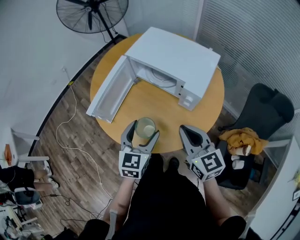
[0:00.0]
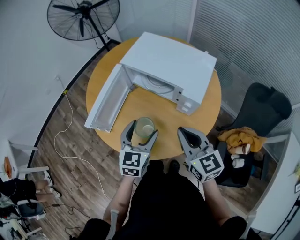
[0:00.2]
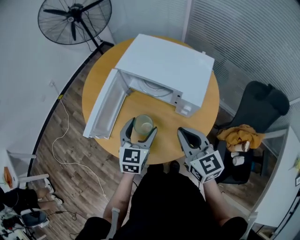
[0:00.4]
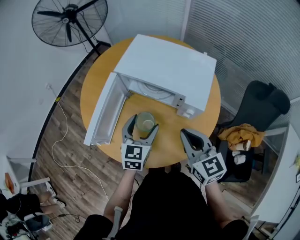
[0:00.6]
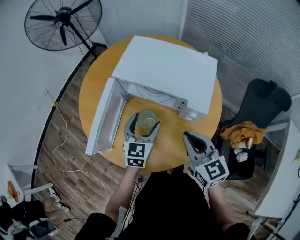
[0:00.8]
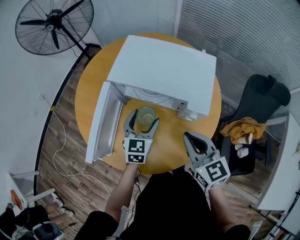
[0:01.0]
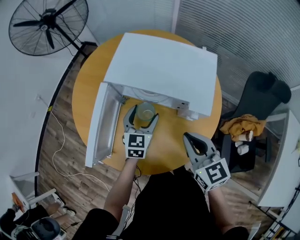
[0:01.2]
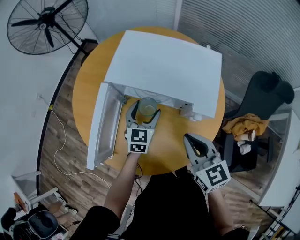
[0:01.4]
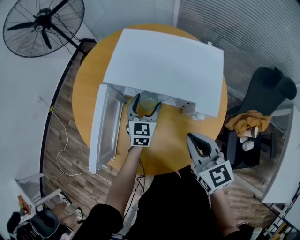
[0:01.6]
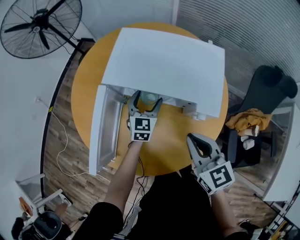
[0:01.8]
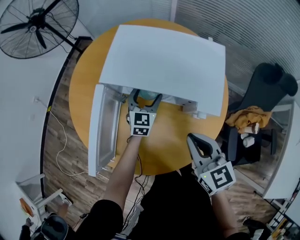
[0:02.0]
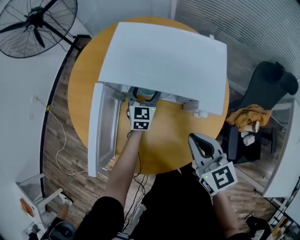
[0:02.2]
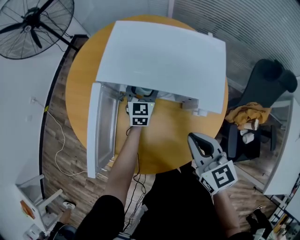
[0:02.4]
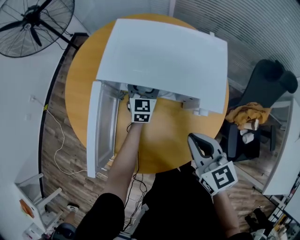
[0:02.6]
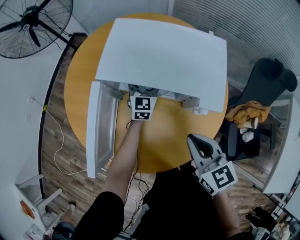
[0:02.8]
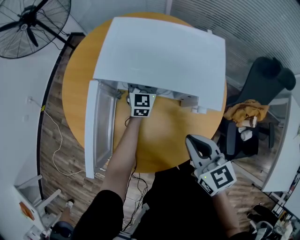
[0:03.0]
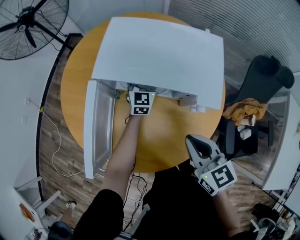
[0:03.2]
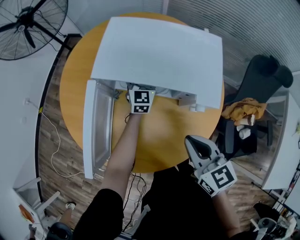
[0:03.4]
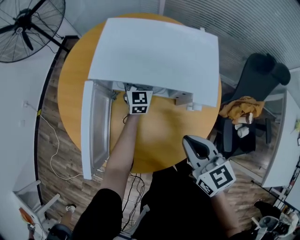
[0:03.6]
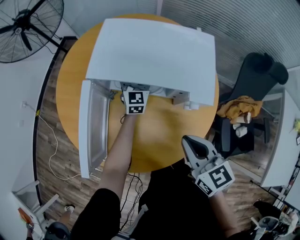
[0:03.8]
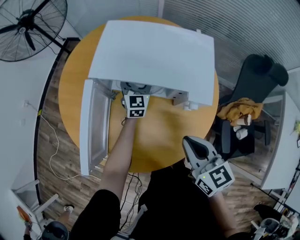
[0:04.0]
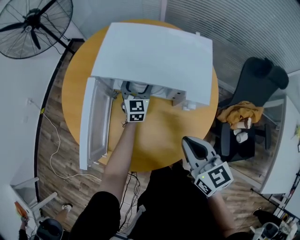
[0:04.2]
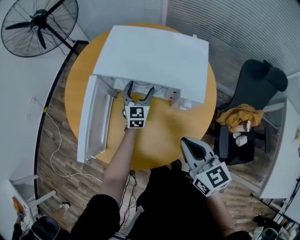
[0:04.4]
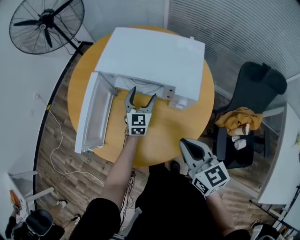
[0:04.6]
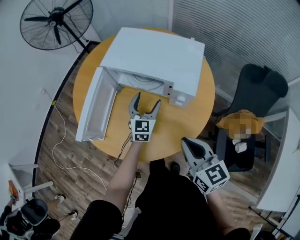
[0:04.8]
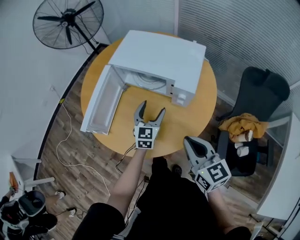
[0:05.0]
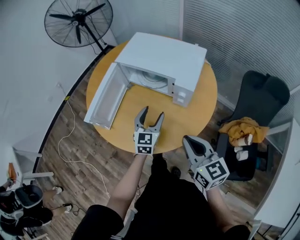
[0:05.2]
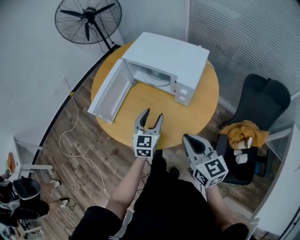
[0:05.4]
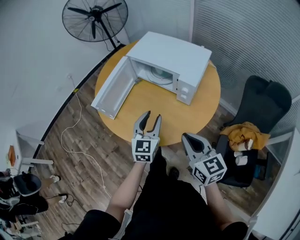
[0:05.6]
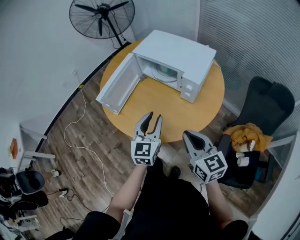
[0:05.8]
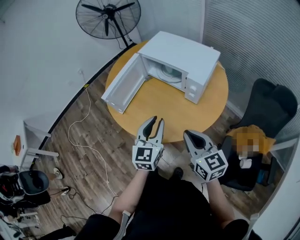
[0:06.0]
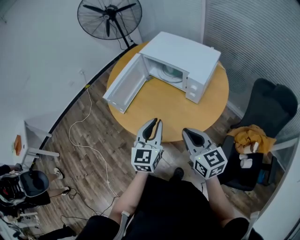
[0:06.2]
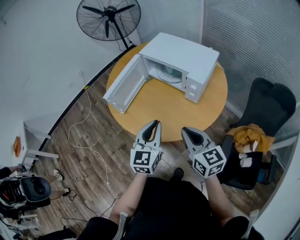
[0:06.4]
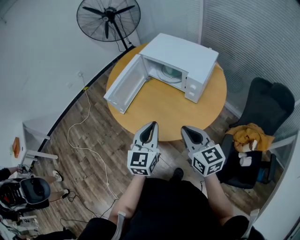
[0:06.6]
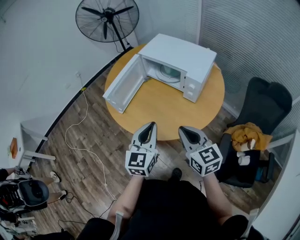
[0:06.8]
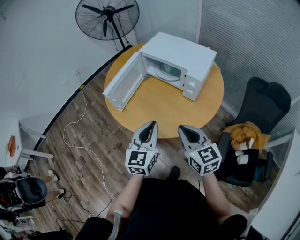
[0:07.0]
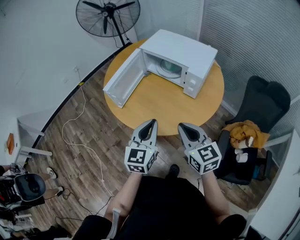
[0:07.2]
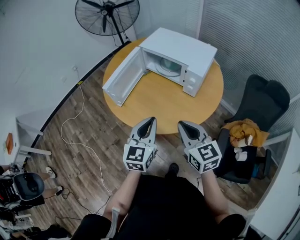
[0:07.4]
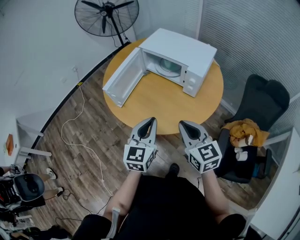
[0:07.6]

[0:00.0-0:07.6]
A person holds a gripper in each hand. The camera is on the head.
0:00.0 to 0:01.6: The right gripper moves forward, about 10 cm. Meanwhile the left gripper shifts some 30 cm forward and downward.
0:01.6 to 0:03.0: The left gripper is displaced forward by approximately 10 cm.
0:03.0 to 0:04.6: The left gripper travels backward by some 10 cm. The right gripper goes some 10 cm backward.
0:04.6 to 0:06.0: The right gripper goes about 15 cm backward; the left gripper goes approximately 35 cm backward and upward, and closes up.
0:06.0 to 0:07.6: The left gripper is displaced backward by some 5 cm.

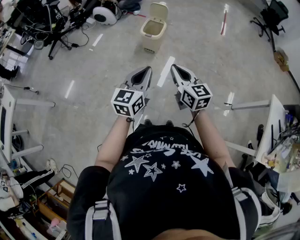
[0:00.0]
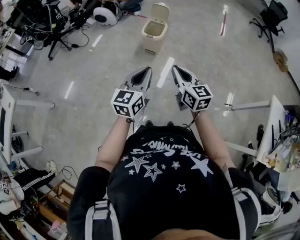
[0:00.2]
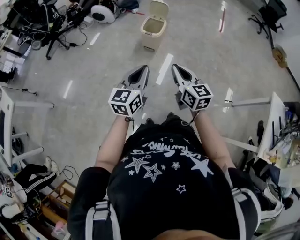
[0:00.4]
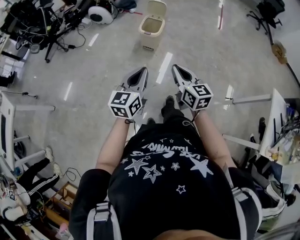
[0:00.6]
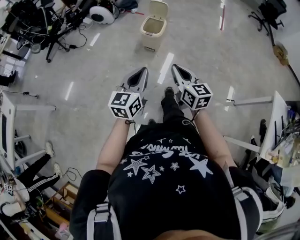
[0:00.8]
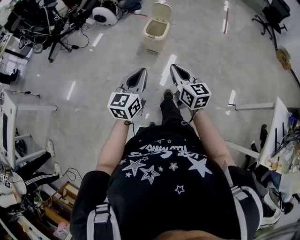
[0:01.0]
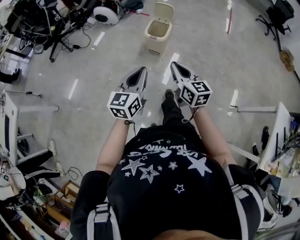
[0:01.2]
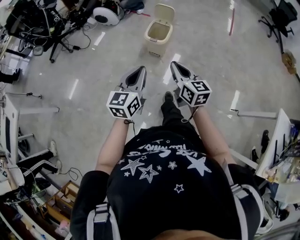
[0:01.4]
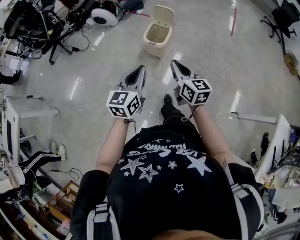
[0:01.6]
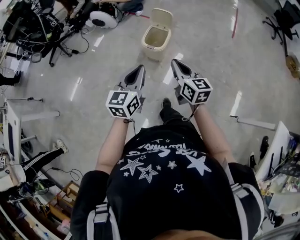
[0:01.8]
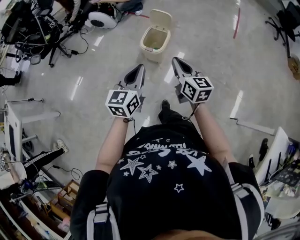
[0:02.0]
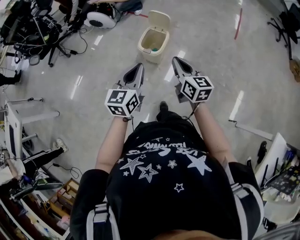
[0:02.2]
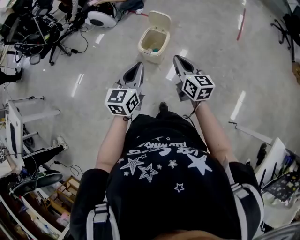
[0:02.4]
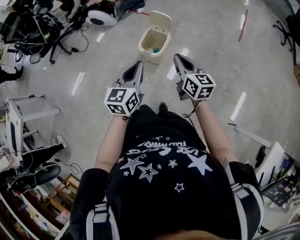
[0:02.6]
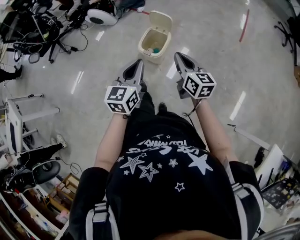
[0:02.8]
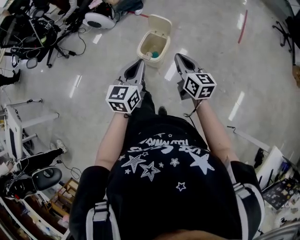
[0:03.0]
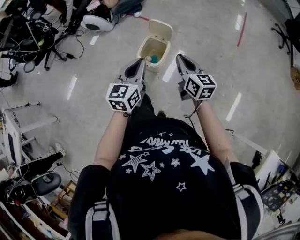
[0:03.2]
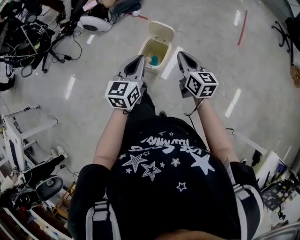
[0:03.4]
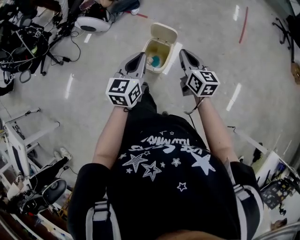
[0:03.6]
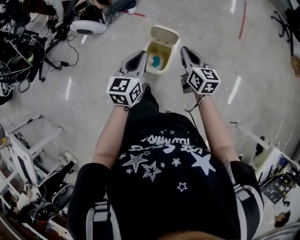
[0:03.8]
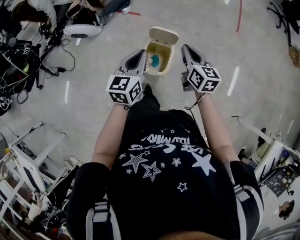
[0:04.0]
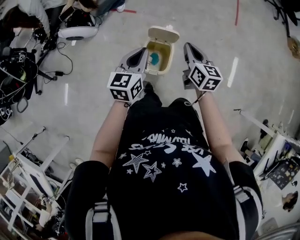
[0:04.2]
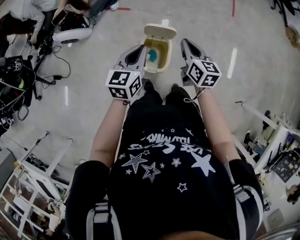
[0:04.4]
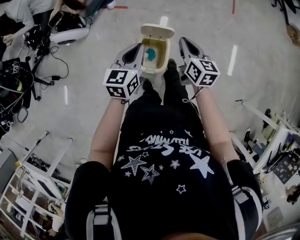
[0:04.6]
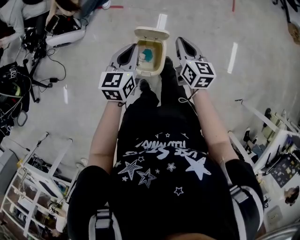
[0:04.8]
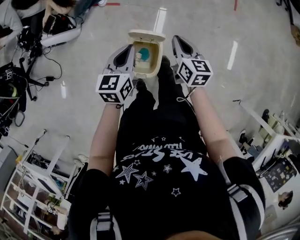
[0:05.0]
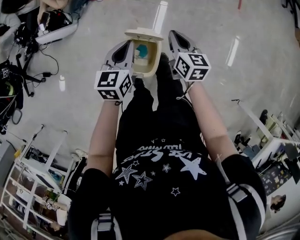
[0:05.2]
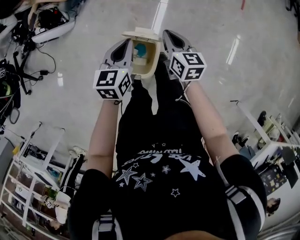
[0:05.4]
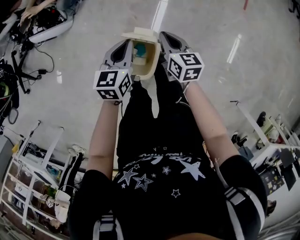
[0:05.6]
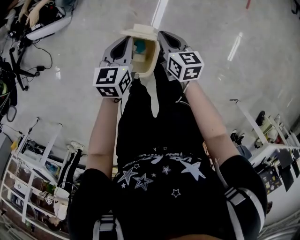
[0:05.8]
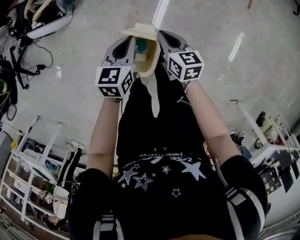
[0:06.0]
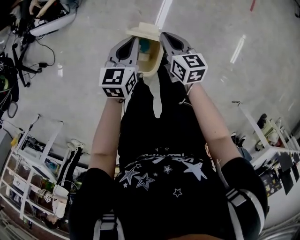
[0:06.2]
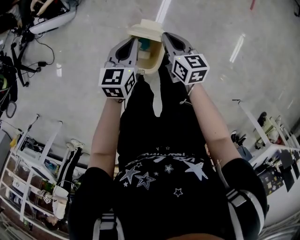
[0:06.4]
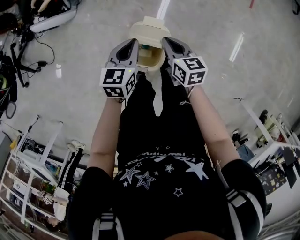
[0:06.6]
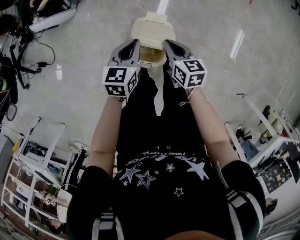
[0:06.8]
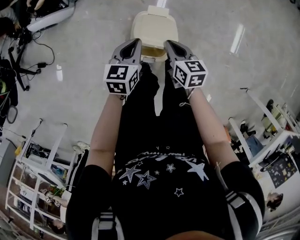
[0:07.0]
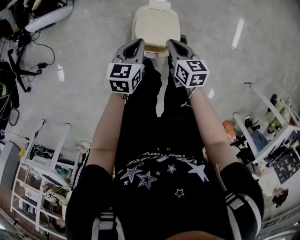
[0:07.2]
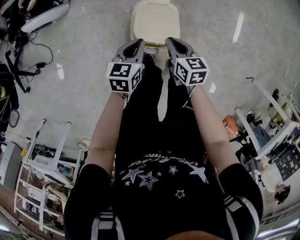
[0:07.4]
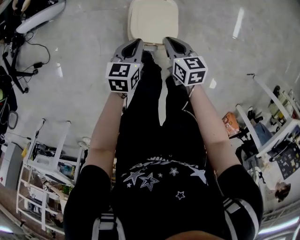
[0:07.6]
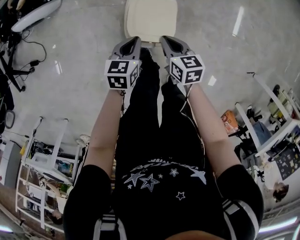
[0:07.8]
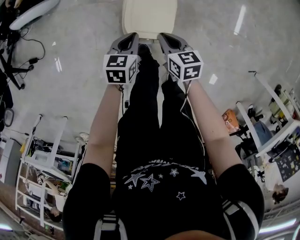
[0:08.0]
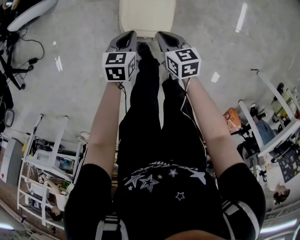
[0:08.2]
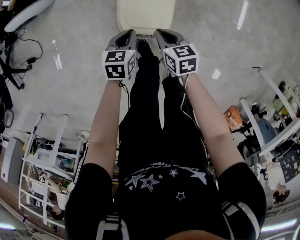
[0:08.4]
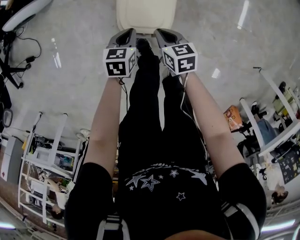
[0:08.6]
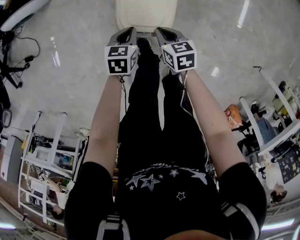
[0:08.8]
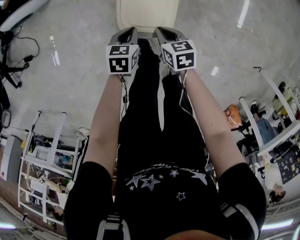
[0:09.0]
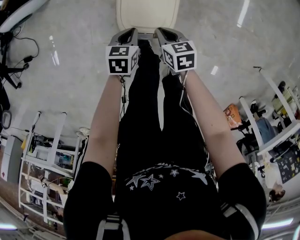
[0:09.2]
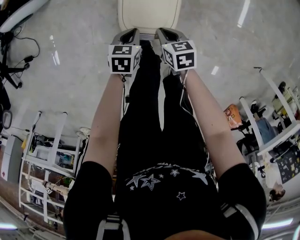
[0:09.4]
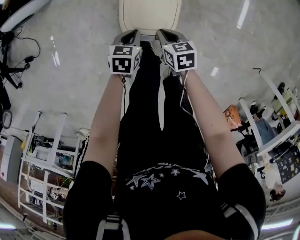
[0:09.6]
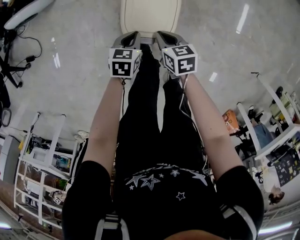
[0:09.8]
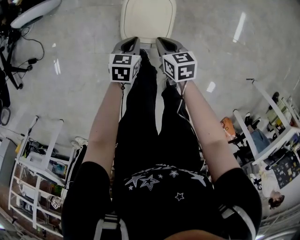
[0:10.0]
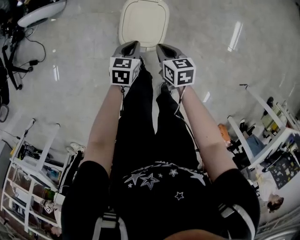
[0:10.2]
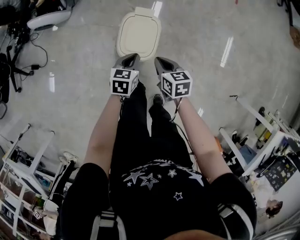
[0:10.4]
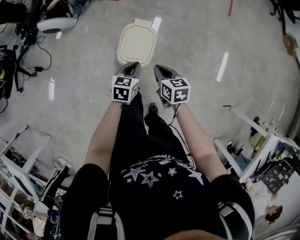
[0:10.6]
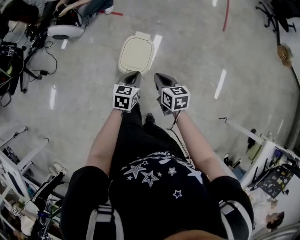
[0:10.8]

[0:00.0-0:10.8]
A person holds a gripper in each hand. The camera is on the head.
0:00.0 to 0:01.6: The grippers both shift forward by roughly 20 cm.
0:01.6 to 0:03.0: The two grippers go roughly 25 cm forward and to the right.
0:03.0 to 0:04.6: The grippers both shift forward by some 30 cm. The left gripper turns by about 20 degrees. The right gripper swivels about 30 degrees.
0:04.6 to 0:06.2: The left gripper is displaced downward, forward and to the right by about 15 cm. The right gripper is displaced downward and forward by about 15 cm.
0:06.2 to 0:07.8: The grippers both shift backward and downward by about 20 cm.
0:07.8 to 0:09.2: The two grippers go approximately 10 cm downward.
0:09.2 to 0:10.8: Both grippers move upward, about 30 cm. The left gripper turns by roughly 20 degrees.

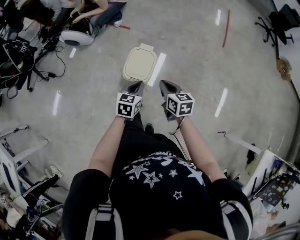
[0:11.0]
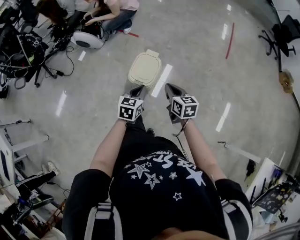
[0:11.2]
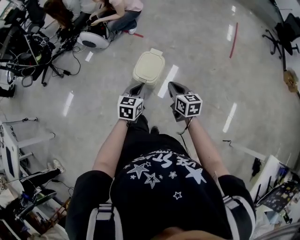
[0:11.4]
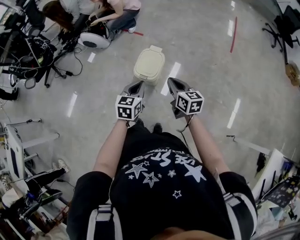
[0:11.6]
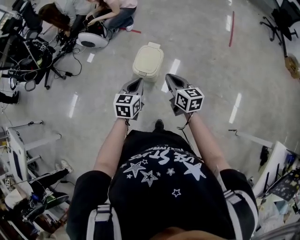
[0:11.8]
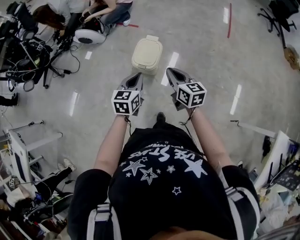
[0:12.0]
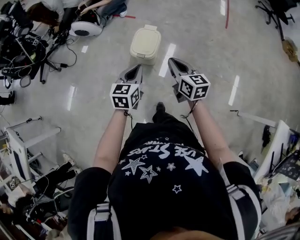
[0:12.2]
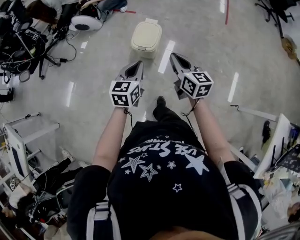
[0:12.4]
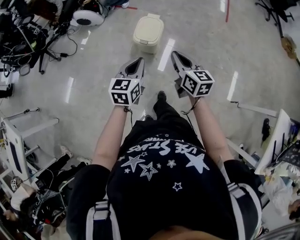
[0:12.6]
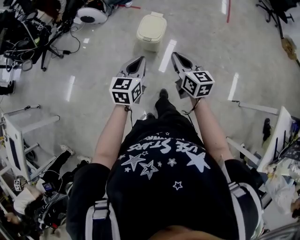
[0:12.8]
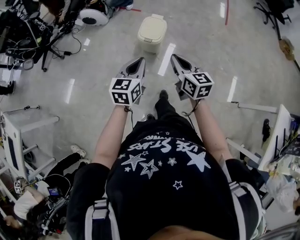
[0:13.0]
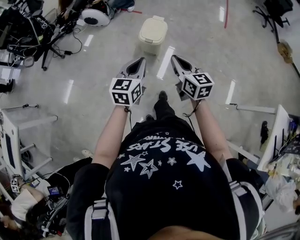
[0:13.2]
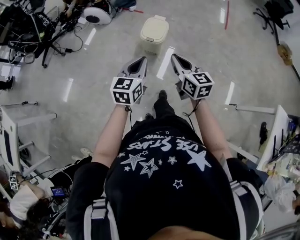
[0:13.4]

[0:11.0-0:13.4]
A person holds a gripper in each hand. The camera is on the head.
0:11.0 to 0:12.2: The grippers both shift backward and upward by approximately 15 cm.
0:12.2 to 0:13.4: The two grippers go some 20 cm backward and to the left.

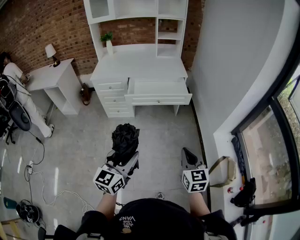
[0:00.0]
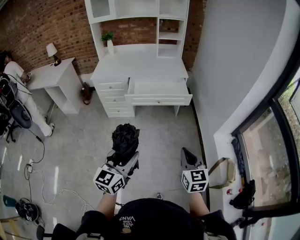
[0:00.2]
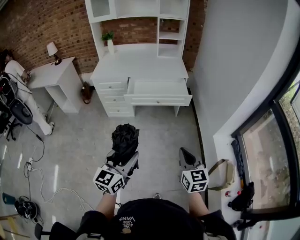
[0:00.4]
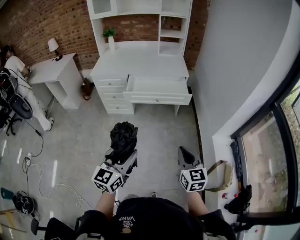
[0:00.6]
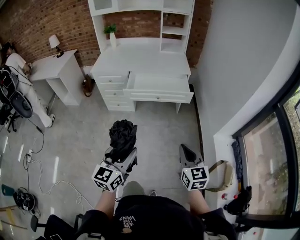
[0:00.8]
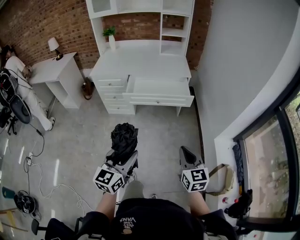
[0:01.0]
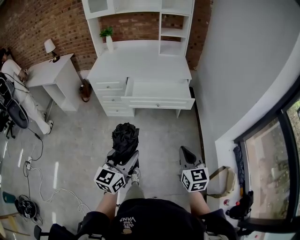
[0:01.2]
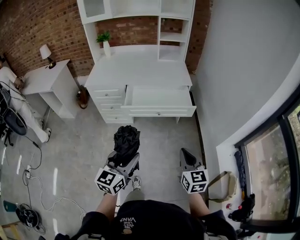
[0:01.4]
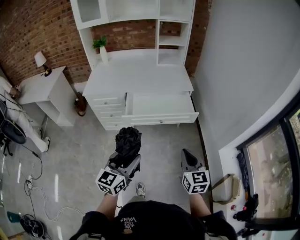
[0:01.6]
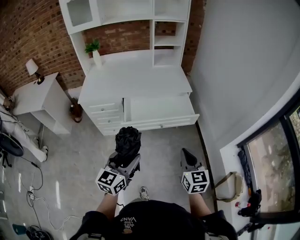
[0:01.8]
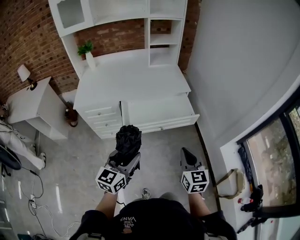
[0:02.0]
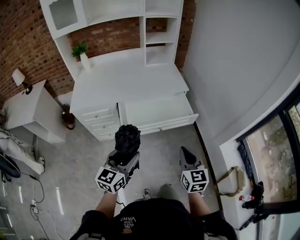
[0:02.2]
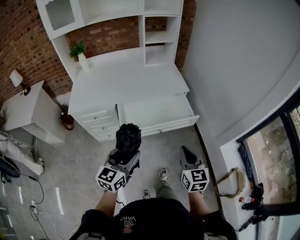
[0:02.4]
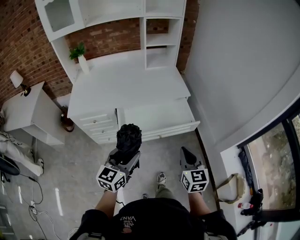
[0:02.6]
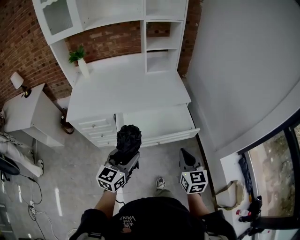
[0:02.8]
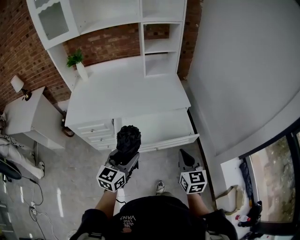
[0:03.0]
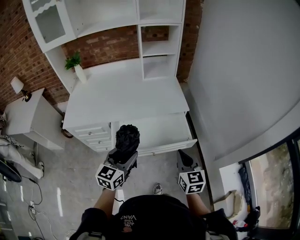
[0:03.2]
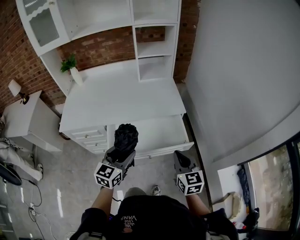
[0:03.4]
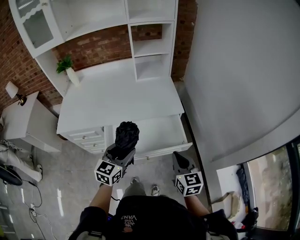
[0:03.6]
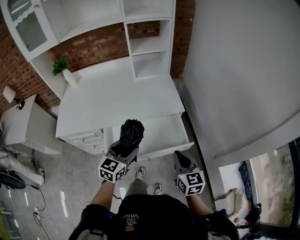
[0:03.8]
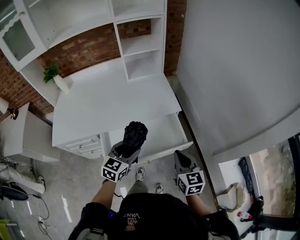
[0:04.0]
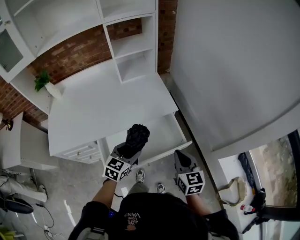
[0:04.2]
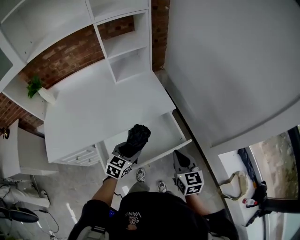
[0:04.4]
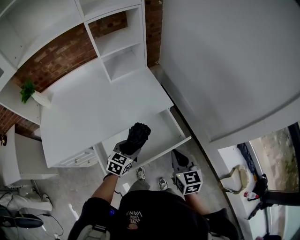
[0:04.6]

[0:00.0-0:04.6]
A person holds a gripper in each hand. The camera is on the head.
0:00.0 to 0:01.6: The two grippers go some 25 cm forward.
0:01.6 to 0:03.0: Both grippers travel together forward, approximately 25 cm.
0:03.0 to 0:04.6: The right gripper shifts some 15 cm forward, while the left gripper heads forward and downward, covering roughly 30 cm, and changes its angle by roughly 40 degrees.
